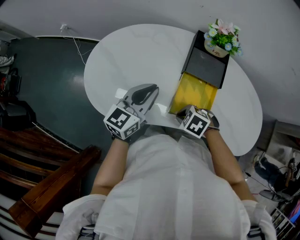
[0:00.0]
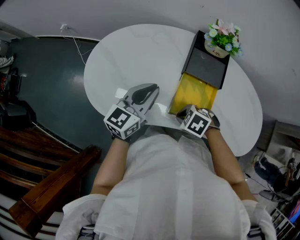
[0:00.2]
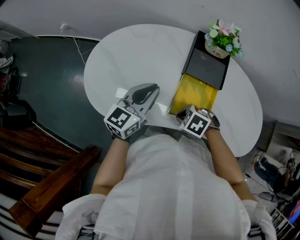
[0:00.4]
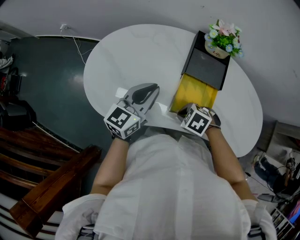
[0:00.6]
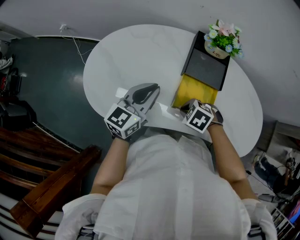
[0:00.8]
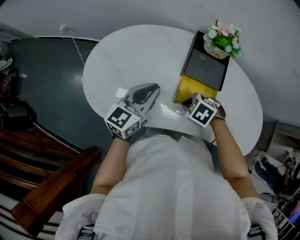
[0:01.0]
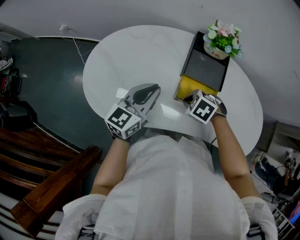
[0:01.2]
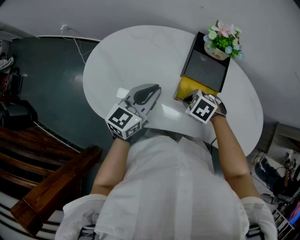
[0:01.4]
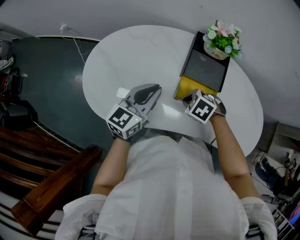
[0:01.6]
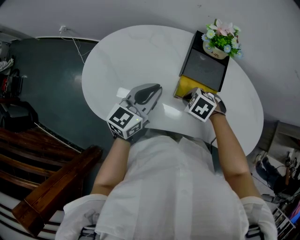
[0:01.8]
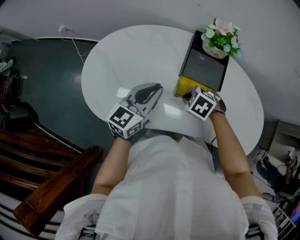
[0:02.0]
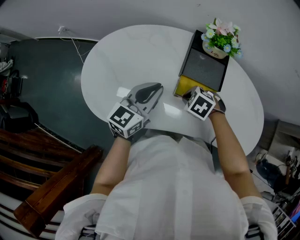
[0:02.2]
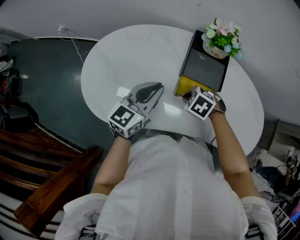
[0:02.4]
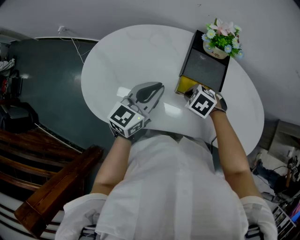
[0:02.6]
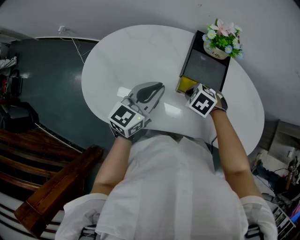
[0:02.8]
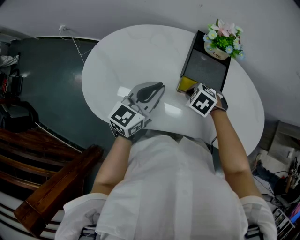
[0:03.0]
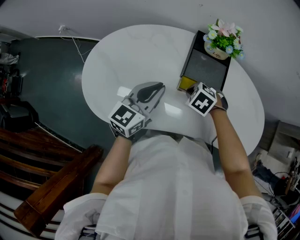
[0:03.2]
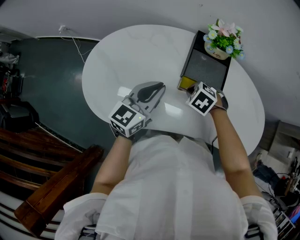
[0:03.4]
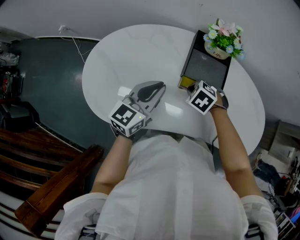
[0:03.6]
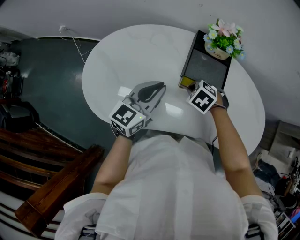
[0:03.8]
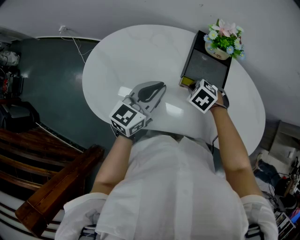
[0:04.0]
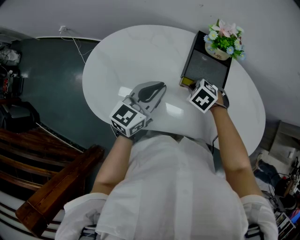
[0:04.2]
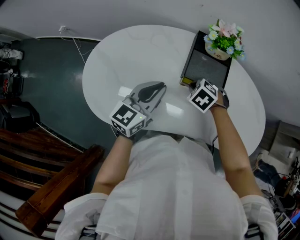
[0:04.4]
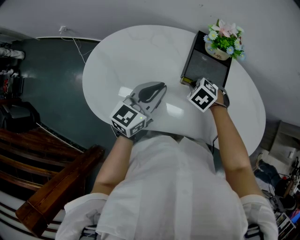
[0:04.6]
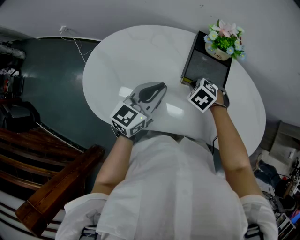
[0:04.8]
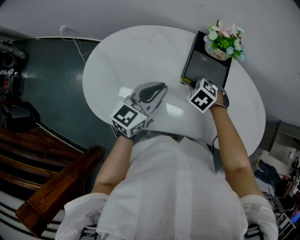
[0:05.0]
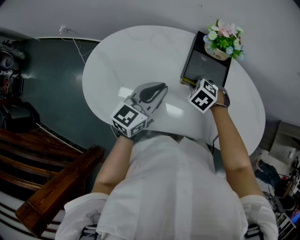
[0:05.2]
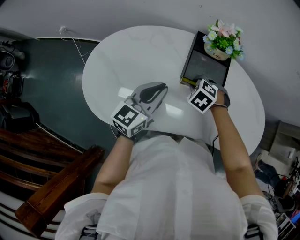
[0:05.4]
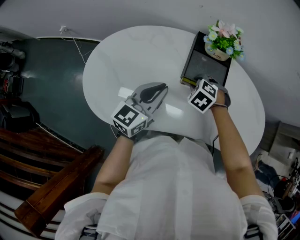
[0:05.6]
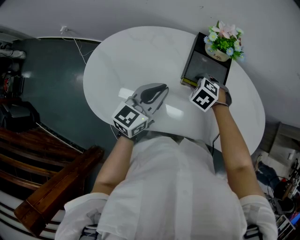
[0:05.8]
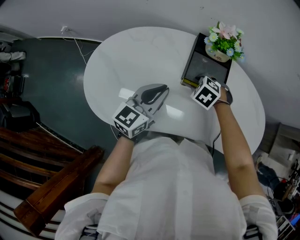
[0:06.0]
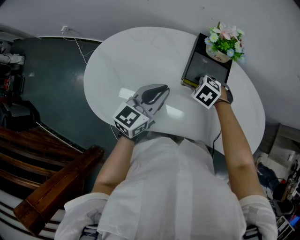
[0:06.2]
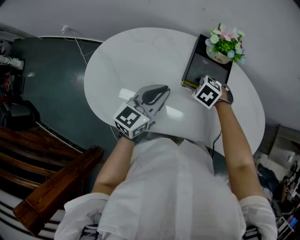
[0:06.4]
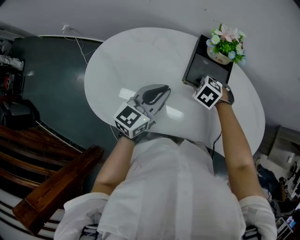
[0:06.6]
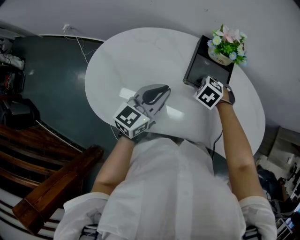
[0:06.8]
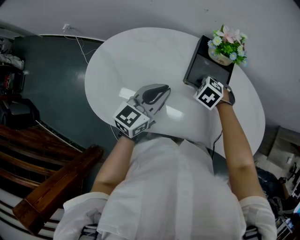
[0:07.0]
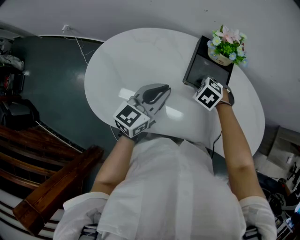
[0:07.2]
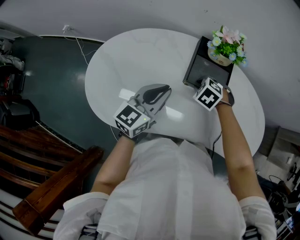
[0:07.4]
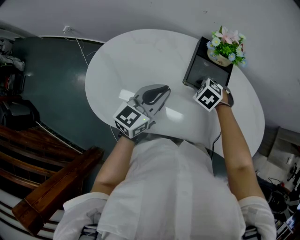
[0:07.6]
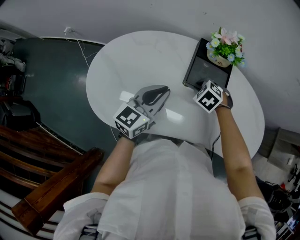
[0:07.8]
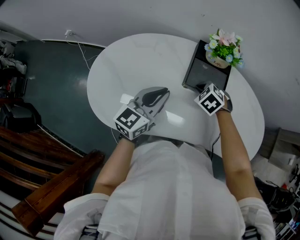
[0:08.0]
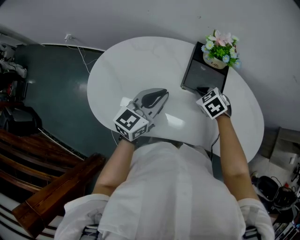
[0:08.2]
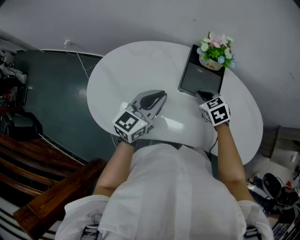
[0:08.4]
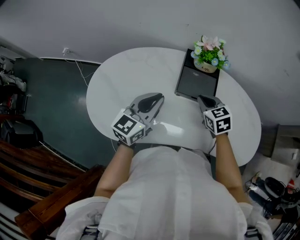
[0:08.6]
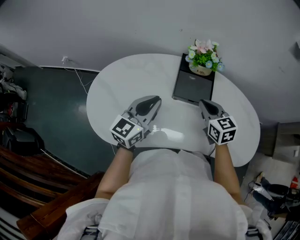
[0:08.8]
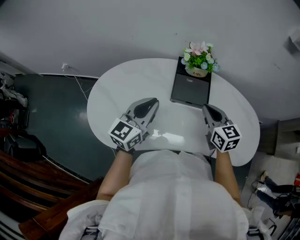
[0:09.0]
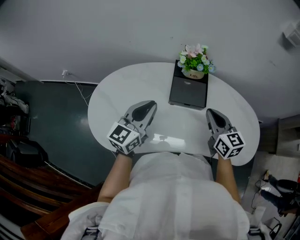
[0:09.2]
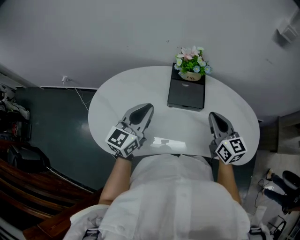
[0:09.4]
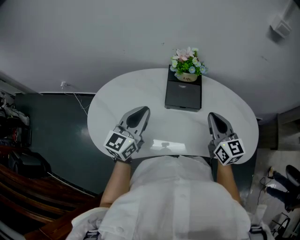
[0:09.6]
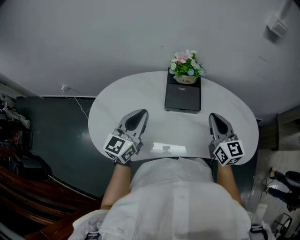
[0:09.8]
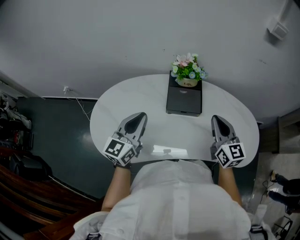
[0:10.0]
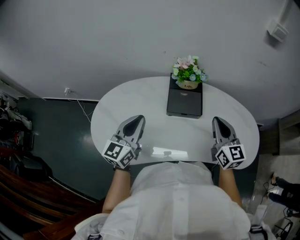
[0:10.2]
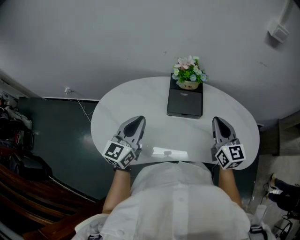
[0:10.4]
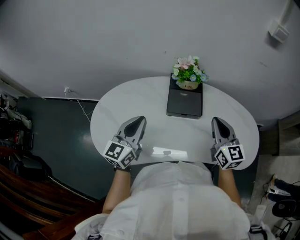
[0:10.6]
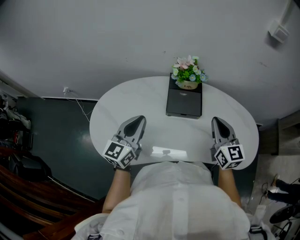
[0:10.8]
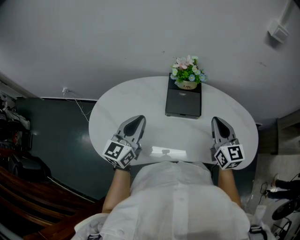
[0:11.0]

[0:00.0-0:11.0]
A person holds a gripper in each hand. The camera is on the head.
0.0 to 1.6 s: The right gripper changes place by roughly 10 cm.
1.6 to 3.2 s: The grippers move only a little.
3.2 to 4.8 s: The grippers move only a little.
4.8 to 6.2 s: The right gripper opens up.
6.2 to 7.8 s: Both grippers stay about where they are.
7.8 to 9.4 s: The left gripper goes approximately 5 cm upward; the right gripper heads upward, to the right and backward, covering roughly 25 cm, and tips its fingers upward by roughly 60 degrees.
9.4 to 11.0 s: There are only small adjustments of the grippers.

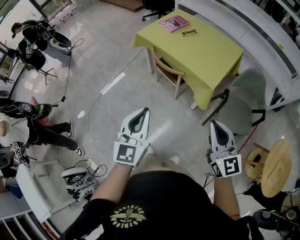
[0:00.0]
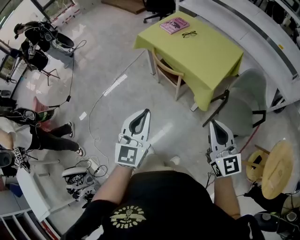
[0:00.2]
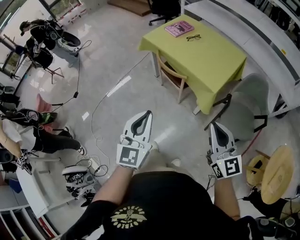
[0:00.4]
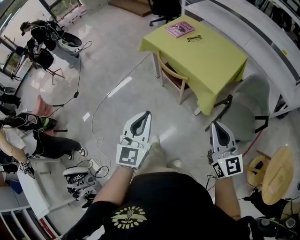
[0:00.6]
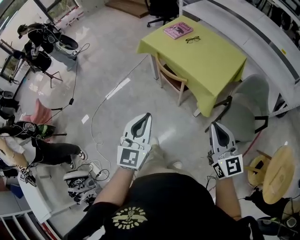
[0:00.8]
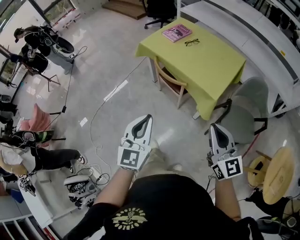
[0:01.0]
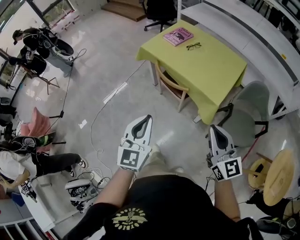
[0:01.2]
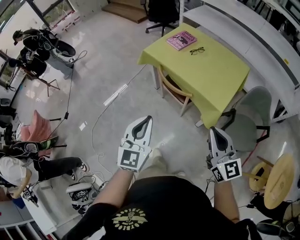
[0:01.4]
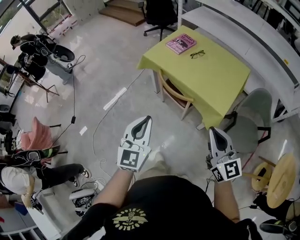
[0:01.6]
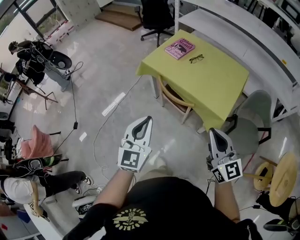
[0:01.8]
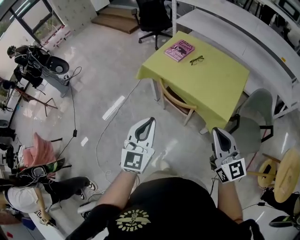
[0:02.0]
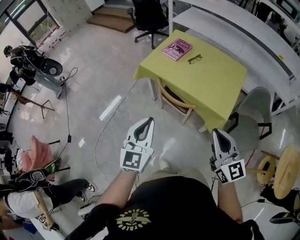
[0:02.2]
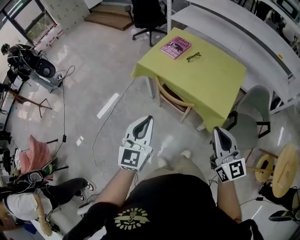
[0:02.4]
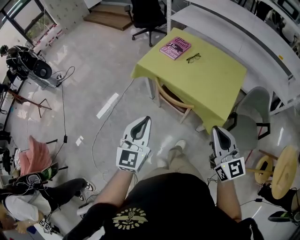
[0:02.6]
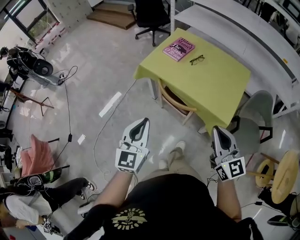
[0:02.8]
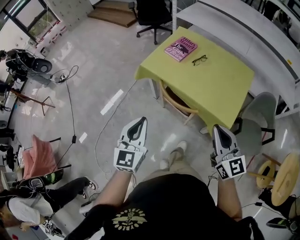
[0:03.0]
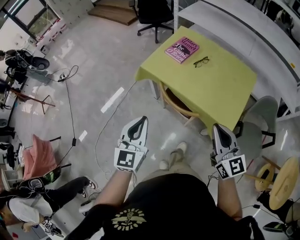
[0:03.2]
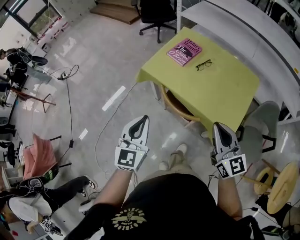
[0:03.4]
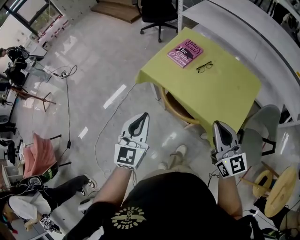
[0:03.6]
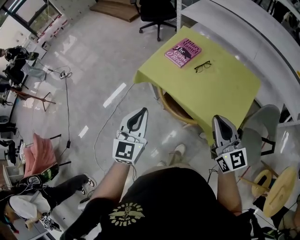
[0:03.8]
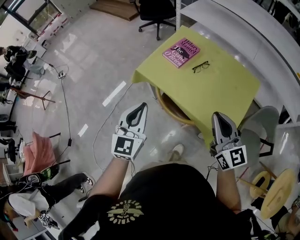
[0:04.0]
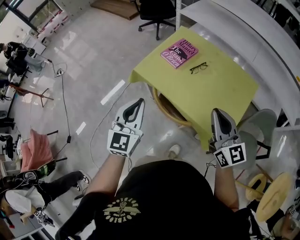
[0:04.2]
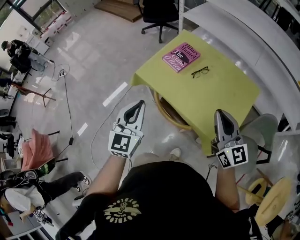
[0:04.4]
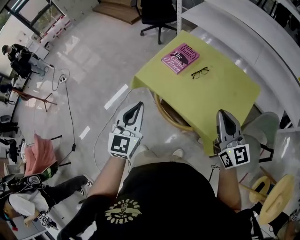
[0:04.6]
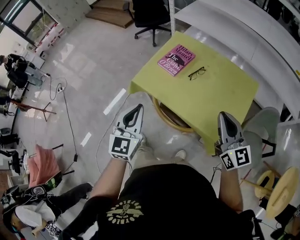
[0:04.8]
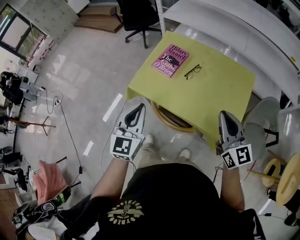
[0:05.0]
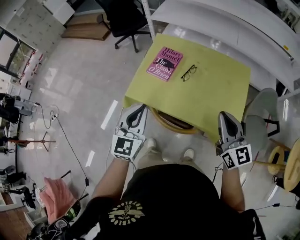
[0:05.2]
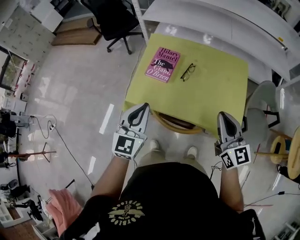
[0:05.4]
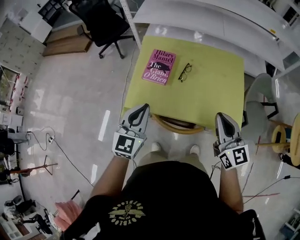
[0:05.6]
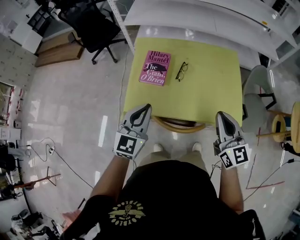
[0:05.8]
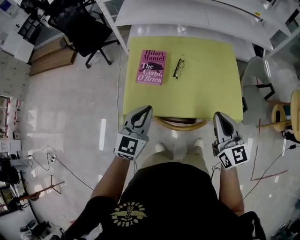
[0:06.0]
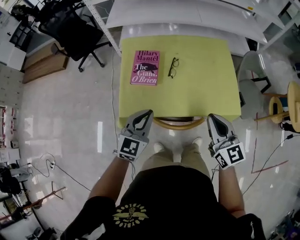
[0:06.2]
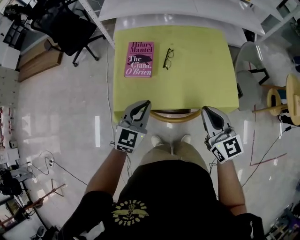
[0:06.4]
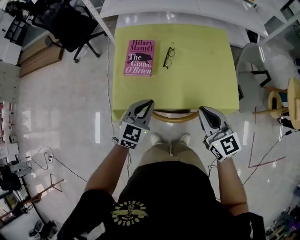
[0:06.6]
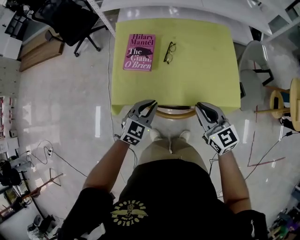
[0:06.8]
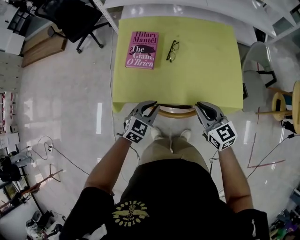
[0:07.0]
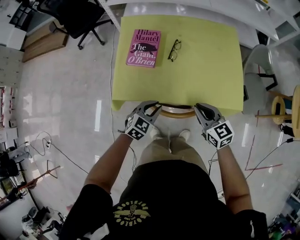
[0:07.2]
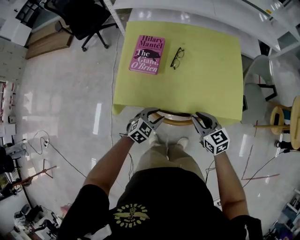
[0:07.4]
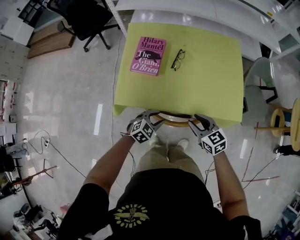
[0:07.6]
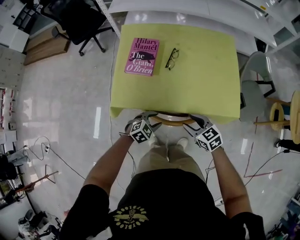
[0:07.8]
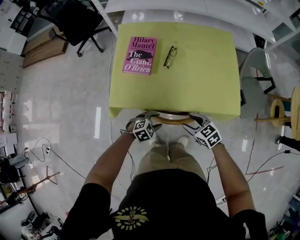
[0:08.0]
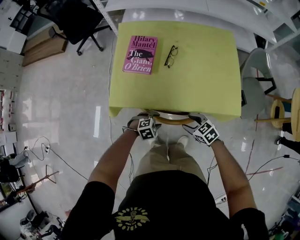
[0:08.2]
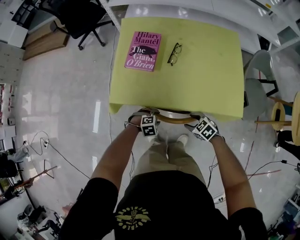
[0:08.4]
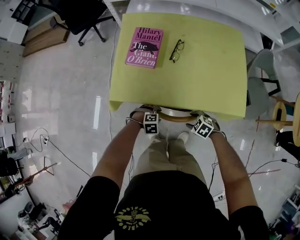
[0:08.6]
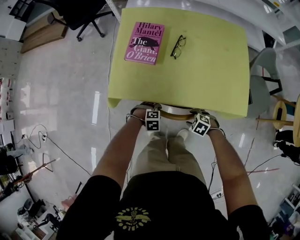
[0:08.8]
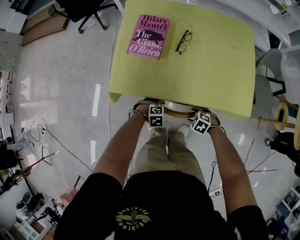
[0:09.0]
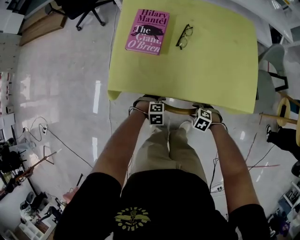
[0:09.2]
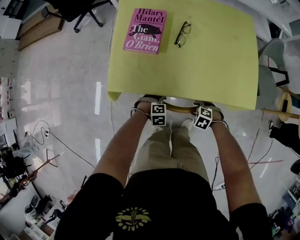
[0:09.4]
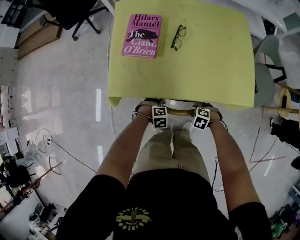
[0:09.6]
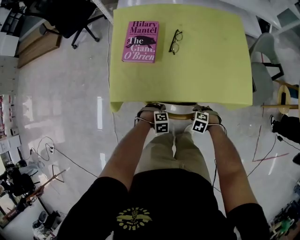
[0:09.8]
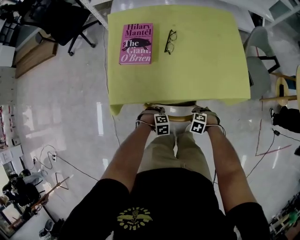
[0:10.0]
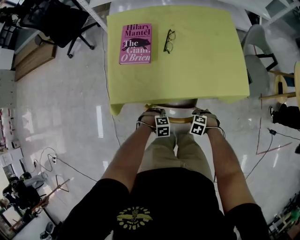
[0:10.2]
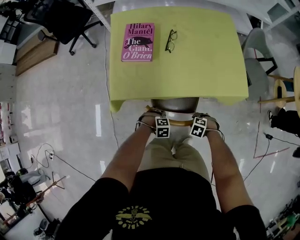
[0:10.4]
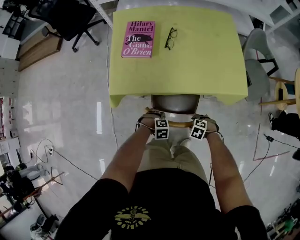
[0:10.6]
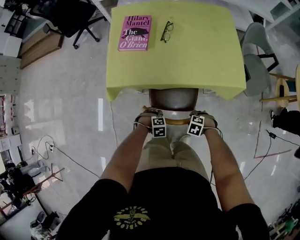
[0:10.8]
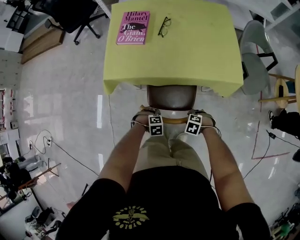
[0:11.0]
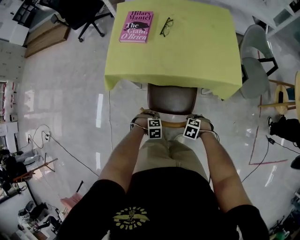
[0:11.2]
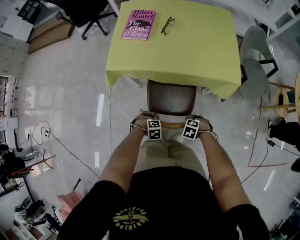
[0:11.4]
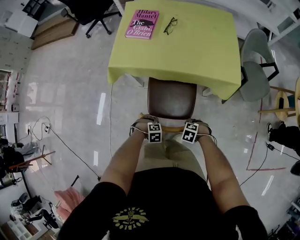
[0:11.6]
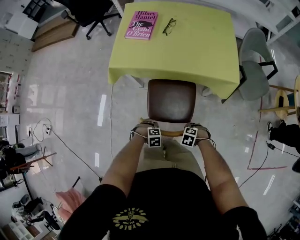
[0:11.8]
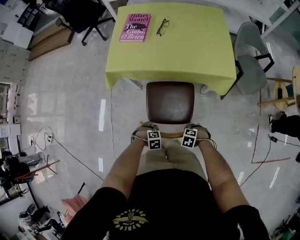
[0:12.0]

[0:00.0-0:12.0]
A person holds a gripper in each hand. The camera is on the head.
0.0 to 1.6 s: Both grippers move forward and to the left, roughly 15 cm.
1.6 to 3.0 s: The left gripper moves forward and to the left, about 15 cm, while the right gripper moves forward, about 15 cm.
3.0 to 4.4 s: The grippers both shift forward and to the right by about 20 cm.
4.4 to 6.0 s: The left gripper ends up approximately 20 cm from where it was, and turns by about 50 degrees, while the right gripper shifts by about 10 cm, and swivels about 40 degrees.
6.0 to 7.6 s: Both grippers travel together downward, roughly 25 cm. The right gripper swivels approximately 40 degrees, and opens; the left gripper tips its fingers downward by roughly 30 degrees, and opens its fingers.
7.6 to 9.0 s: The two grippers go some 20 cm downward. The right gripper tilts its fingers some 40 degrees downward, and opens its fingers. The left gripper swivels roughly 40 degrees.
9.0 to 10.4 s: The right gripper shifts by roughly 10 cm. The left gripper moves about 10 cm.
10.4 to 12.0 s: The left gripper moves approximately 25 cm; the right gripper moves approximately 20 cm.

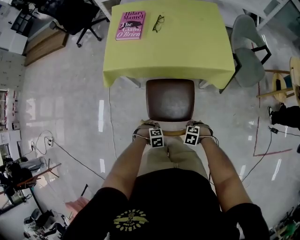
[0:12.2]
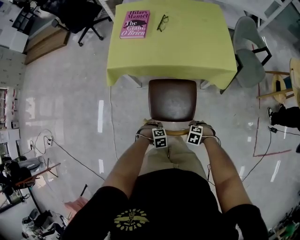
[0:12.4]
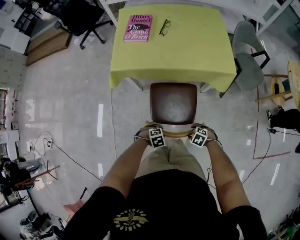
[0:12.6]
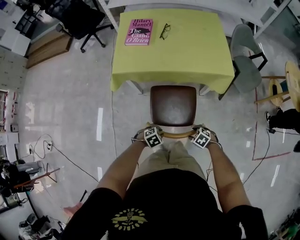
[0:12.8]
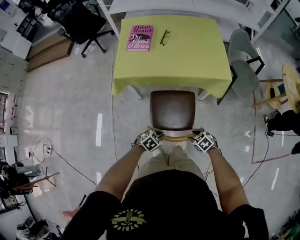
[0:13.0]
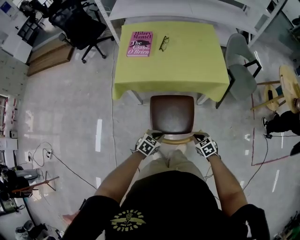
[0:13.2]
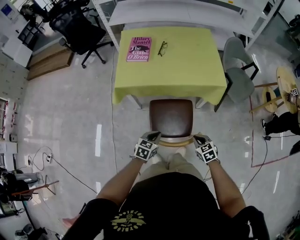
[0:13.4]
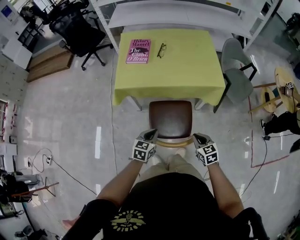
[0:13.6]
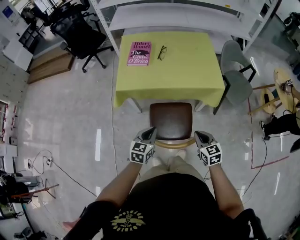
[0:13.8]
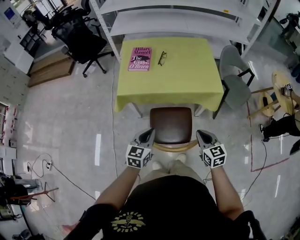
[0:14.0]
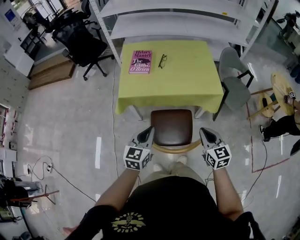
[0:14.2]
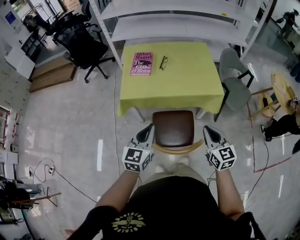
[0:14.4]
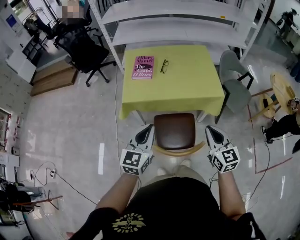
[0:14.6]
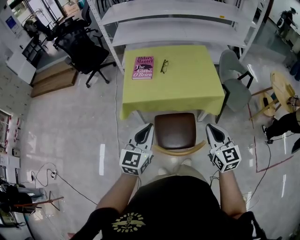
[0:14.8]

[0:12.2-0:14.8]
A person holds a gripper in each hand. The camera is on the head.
12.2 to 13.4 s: The two grippers go some 15 cm upward. The right gripper swivels approximately 60 degrees, and closes; the left gripper tilts its fingers roughly 40 degrees upward, and closes.
13.4 to 14.8 s: The two grippers go about 30 cm upward. The left gripper tips its fingers upward by approximately 30 degrees, while the right gripper tilts its fingers roughly 40 degrees upward.
